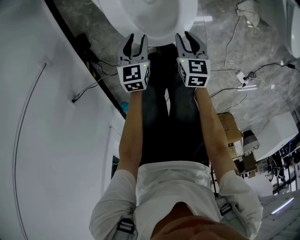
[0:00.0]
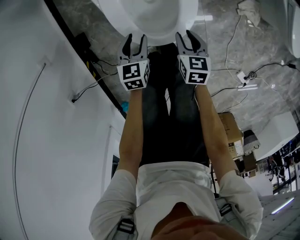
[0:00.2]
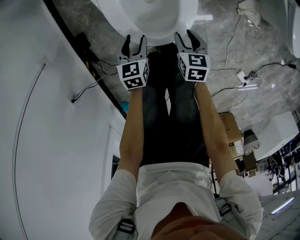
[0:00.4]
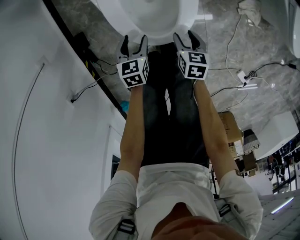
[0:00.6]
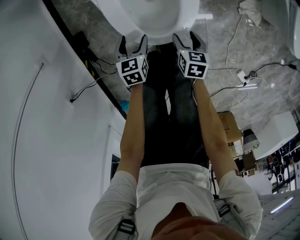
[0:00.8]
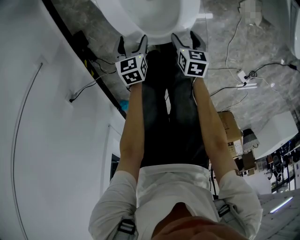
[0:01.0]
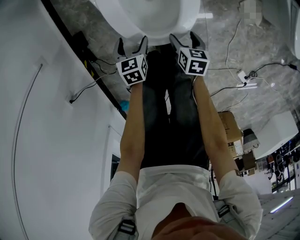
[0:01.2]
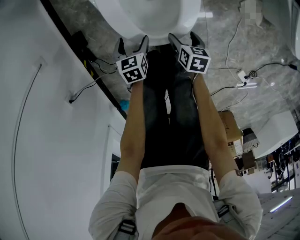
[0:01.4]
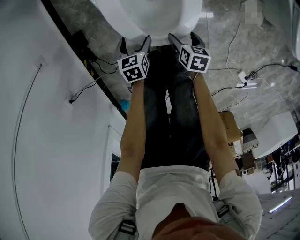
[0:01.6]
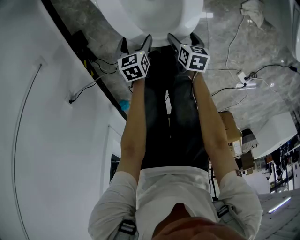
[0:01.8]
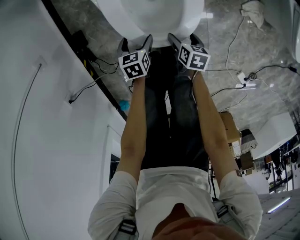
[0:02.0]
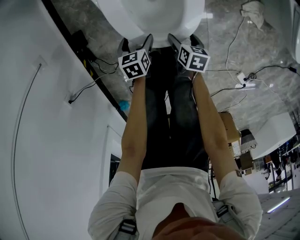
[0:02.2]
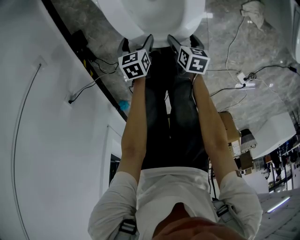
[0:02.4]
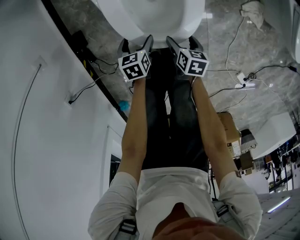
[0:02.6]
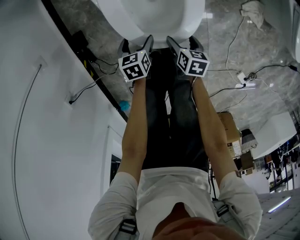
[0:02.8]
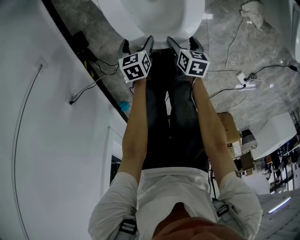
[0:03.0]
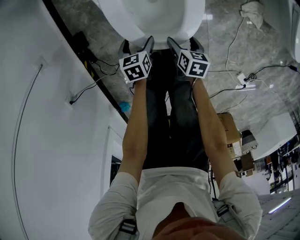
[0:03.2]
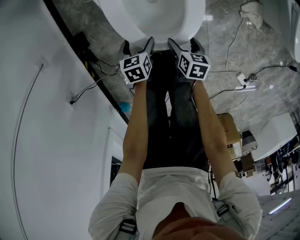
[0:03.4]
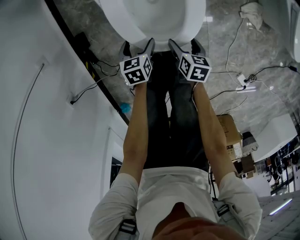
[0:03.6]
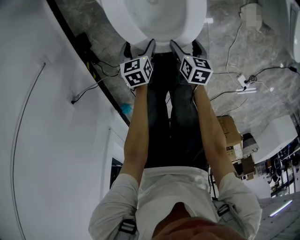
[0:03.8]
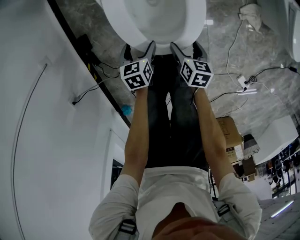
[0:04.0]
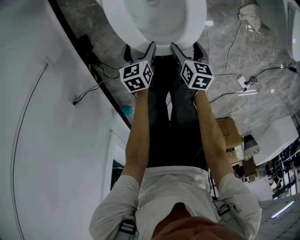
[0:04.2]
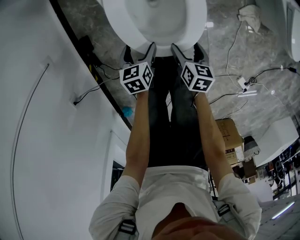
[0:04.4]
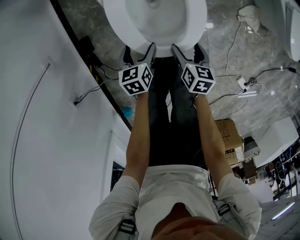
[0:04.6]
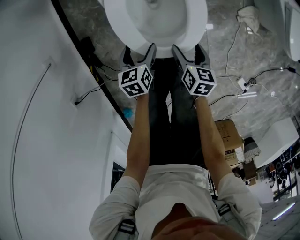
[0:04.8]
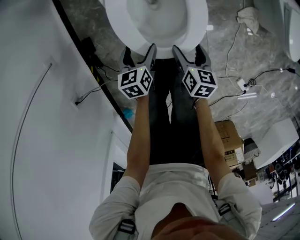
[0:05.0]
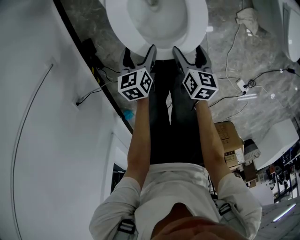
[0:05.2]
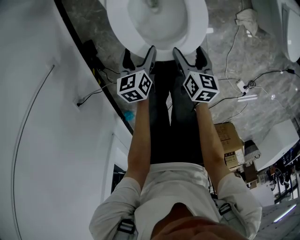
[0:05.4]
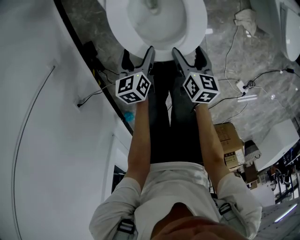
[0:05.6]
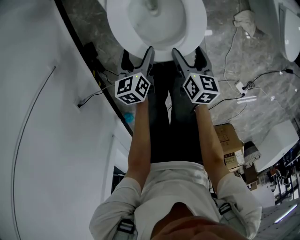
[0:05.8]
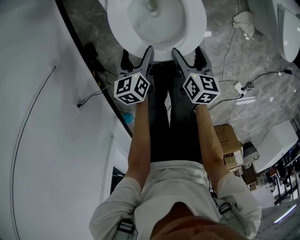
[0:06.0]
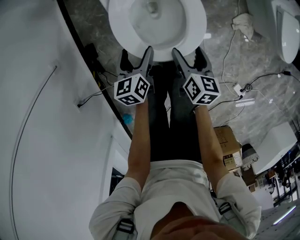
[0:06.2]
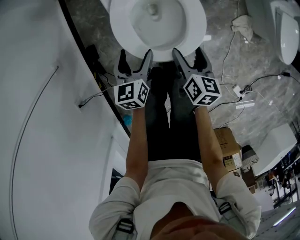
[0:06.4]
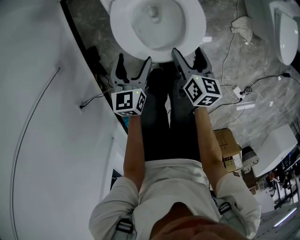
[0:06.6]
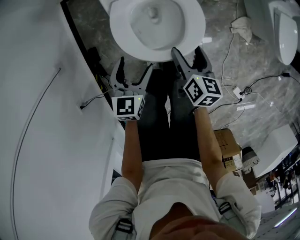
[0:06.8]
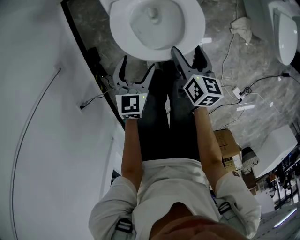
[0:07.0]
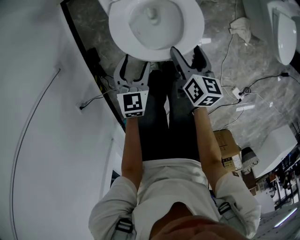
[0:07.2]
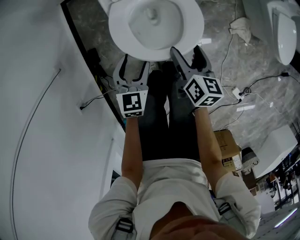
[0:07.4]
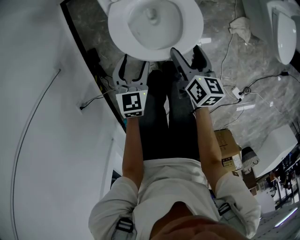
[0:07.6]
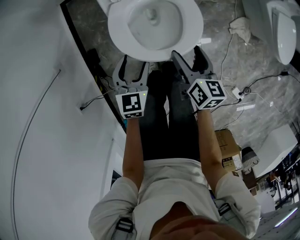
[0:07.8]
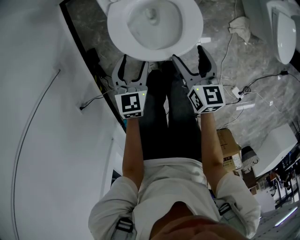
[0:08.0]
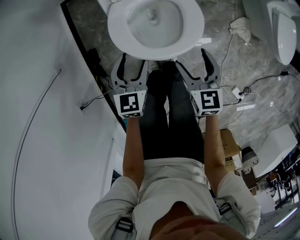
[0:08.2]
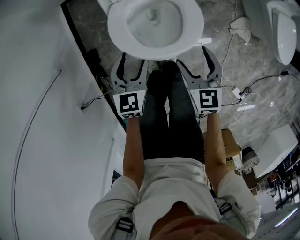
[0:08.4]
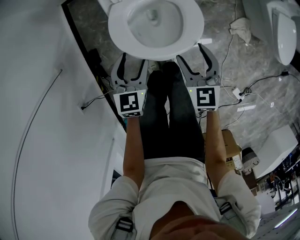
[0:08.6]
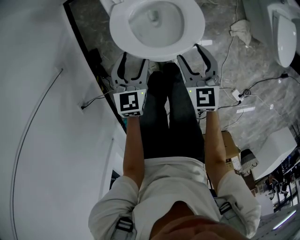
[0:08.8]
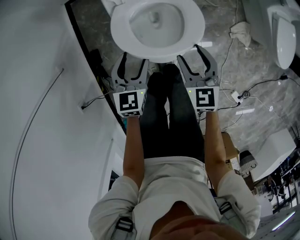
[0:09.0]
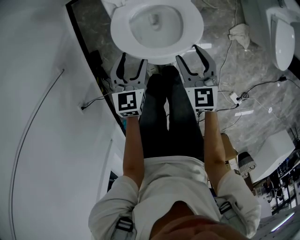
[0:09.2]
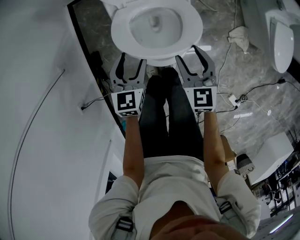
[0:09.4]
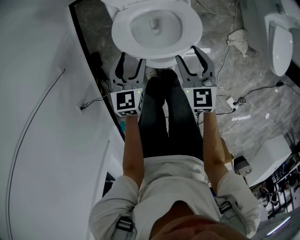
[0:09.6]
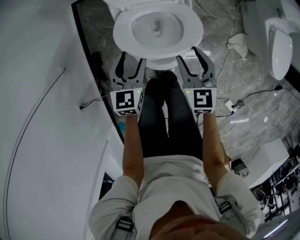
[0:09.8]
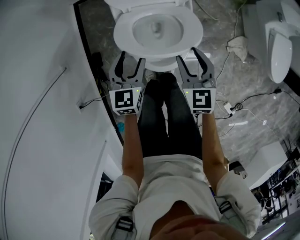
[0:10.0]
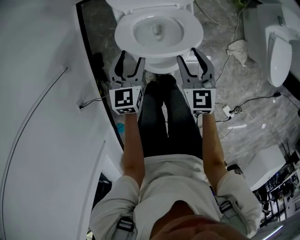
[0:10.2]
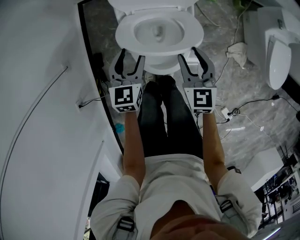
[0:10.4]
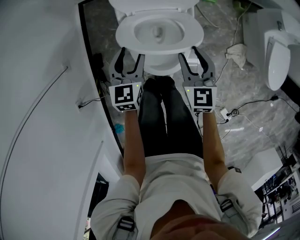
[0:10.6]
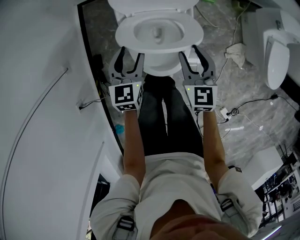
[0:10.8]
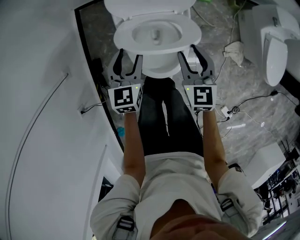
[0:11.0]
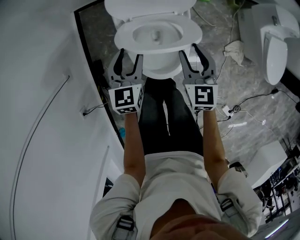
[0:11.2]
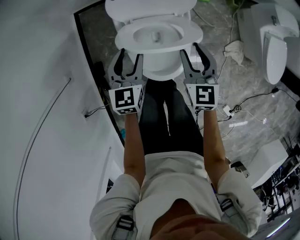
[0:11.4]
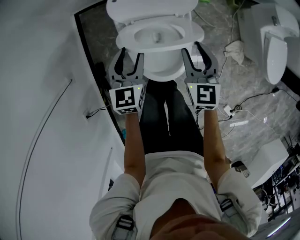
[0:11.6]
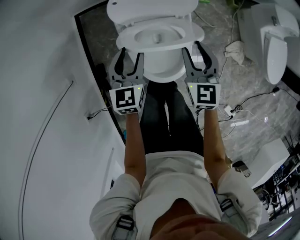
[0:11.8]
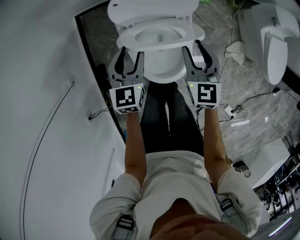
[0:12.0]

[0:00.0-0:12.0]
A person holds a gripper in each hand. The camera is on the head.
0:00.0 to 0:01.6: Both grippers travel together downward, roughly 10 cm. The left gripper opens up; the right gripper changes its angle by about 20 degrees, and opens its fingers.
0:01.6 to 0:03.0: There are only small adjustments of the grippers.
0:03.0 to 0:04.4: Both grippers travel together upward, approximately 10 cm.
0:04.4 to 0:06.0: The two grippers go roughly 10 cm upward.
0:06.0 to 0:07.6: The grippers both shift upward by approximately 10 cm. The left gripper rotates some 40 degrees.
0:07.6 to 0:09.0: The right gripper rotates around the line of its fingers by approximately 40 degrees, counterclockwise from behind.
0:09.0 to 0:10.4: Both grippers travel together forward and upward, approximately 10 cm.
0:10.4 to 0:12.0: Both grippers move forward, roughly 10 cm.

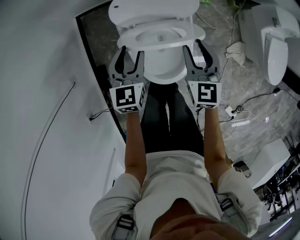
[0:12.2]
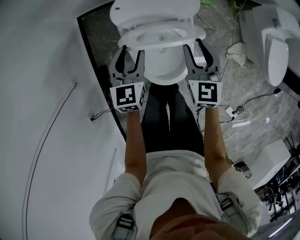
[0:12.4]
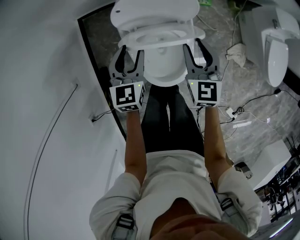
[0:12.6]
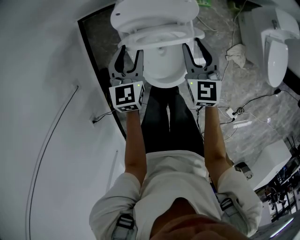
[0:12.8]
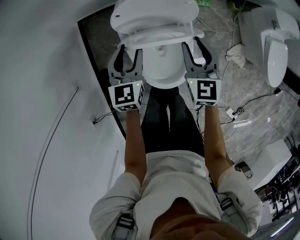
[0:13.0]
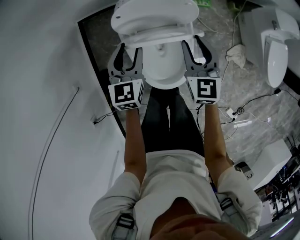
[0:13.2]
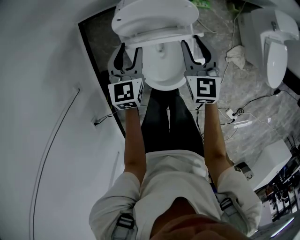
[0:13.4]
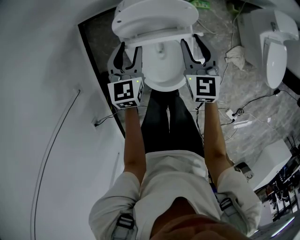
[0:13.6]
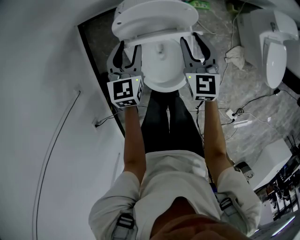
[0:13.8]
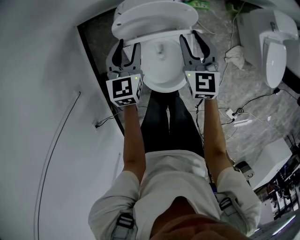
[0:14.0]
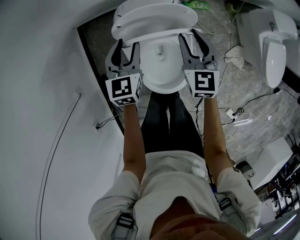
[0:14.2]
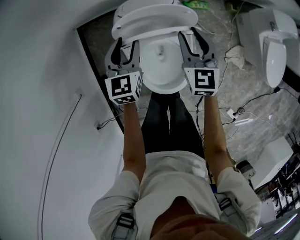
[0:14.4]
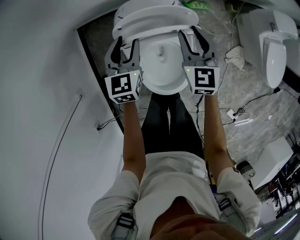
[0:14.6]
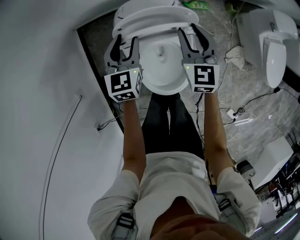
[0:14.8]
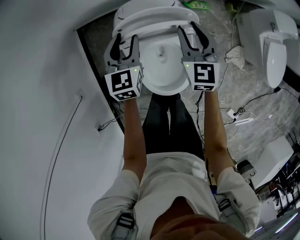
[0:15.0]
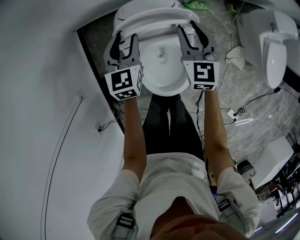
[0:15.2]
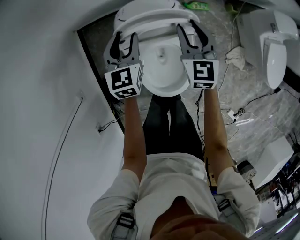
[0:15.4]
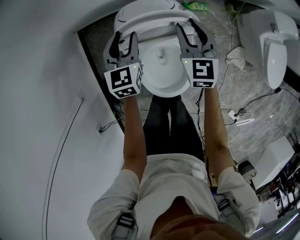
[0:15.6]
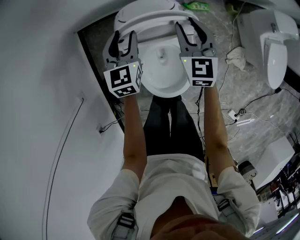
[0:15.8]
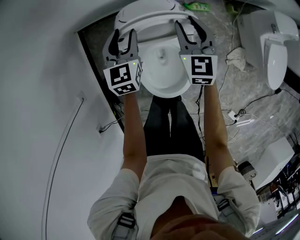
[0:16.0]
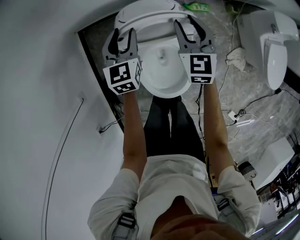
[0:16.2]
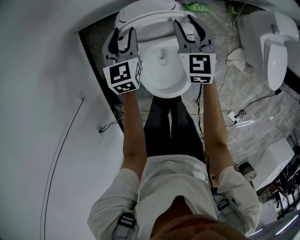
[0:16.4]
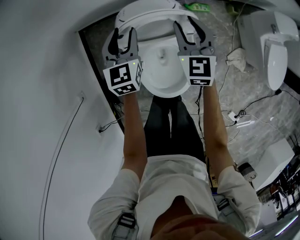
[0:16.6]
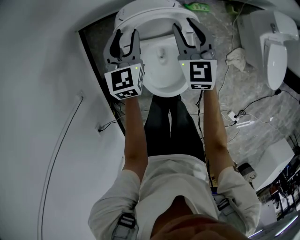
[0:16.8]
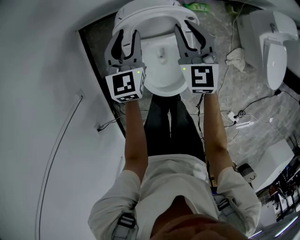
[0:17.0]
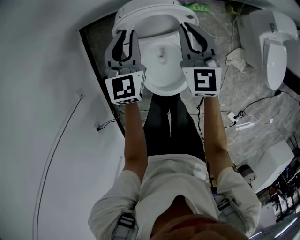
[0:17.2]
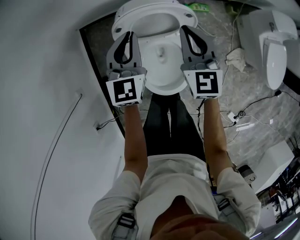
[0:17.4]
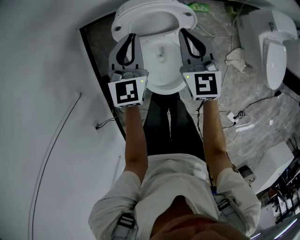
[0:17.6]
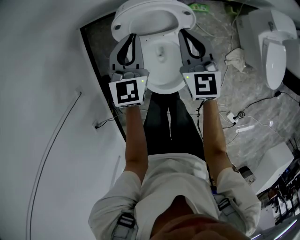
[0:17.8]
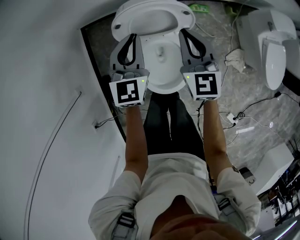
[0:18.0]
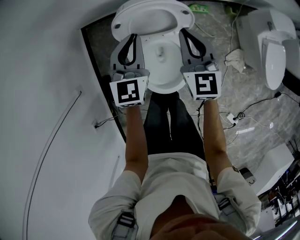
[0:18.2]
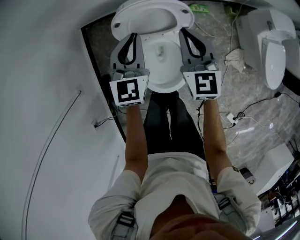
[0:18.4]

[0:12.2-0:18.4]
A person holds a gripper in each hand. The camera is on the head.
0:12.2 to 0:13.8: The grippers both shift forward by approximately 10 cm.
0:13.8 to 0:15.4: Both grippers move forward, approximately 5 cm.
0:15.4 to 0:16.8: The grippers stay close to where they were, moving slightly.
0:16.8 to 0:18.4: Both grippers travel together backward and upward, some 10 cm. The right gripper closes, while the left gripper closes its fingers.

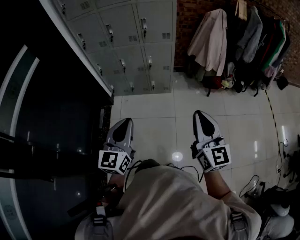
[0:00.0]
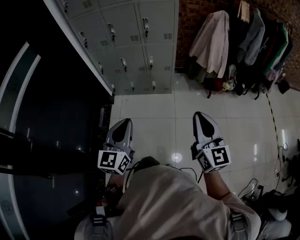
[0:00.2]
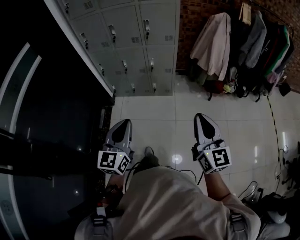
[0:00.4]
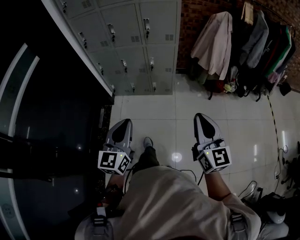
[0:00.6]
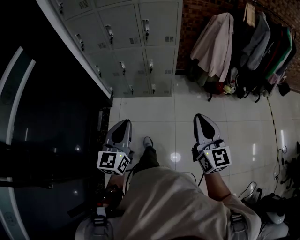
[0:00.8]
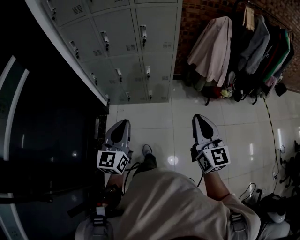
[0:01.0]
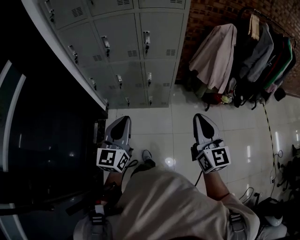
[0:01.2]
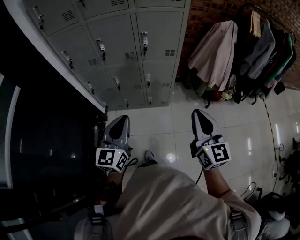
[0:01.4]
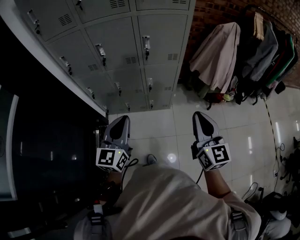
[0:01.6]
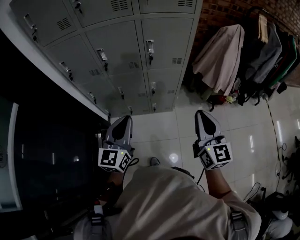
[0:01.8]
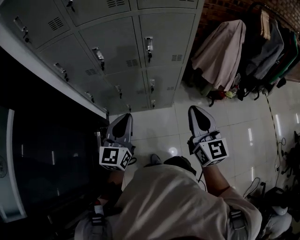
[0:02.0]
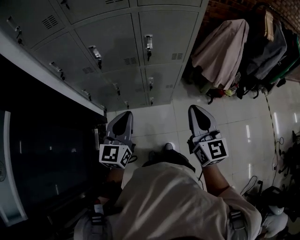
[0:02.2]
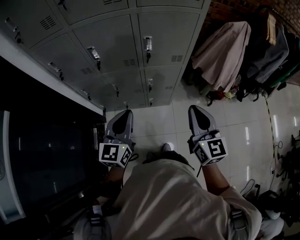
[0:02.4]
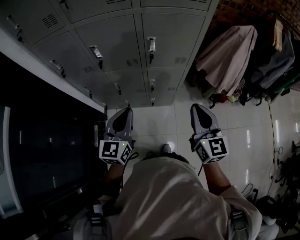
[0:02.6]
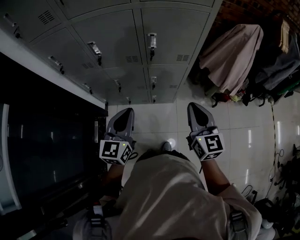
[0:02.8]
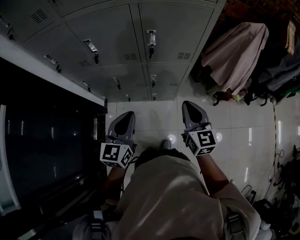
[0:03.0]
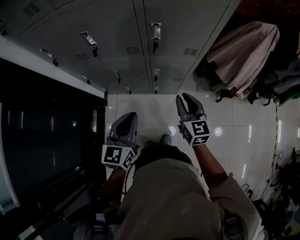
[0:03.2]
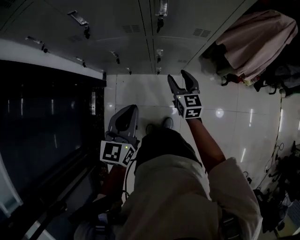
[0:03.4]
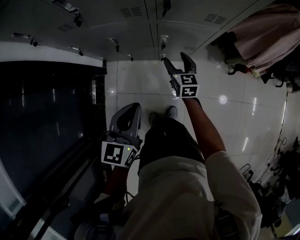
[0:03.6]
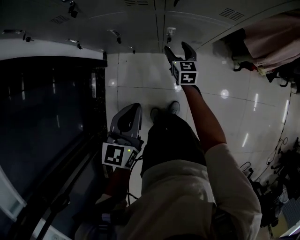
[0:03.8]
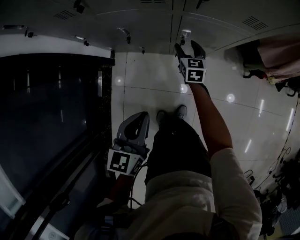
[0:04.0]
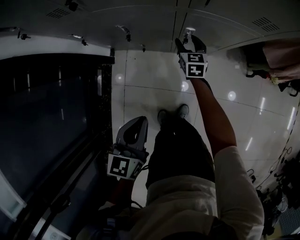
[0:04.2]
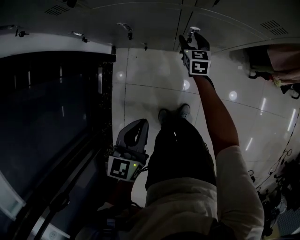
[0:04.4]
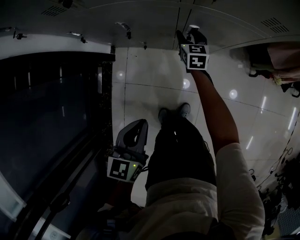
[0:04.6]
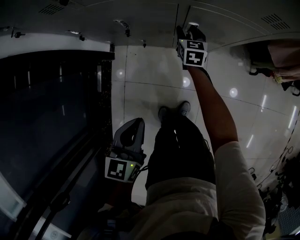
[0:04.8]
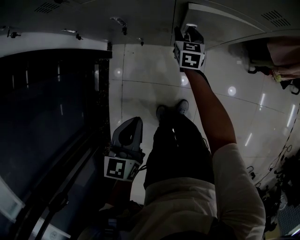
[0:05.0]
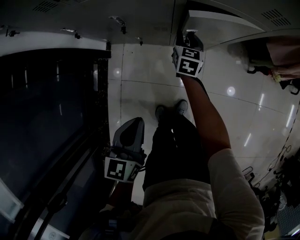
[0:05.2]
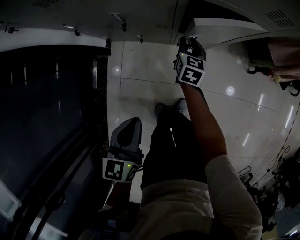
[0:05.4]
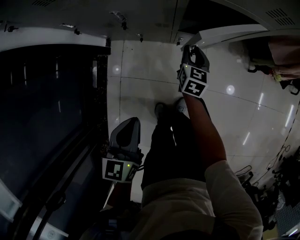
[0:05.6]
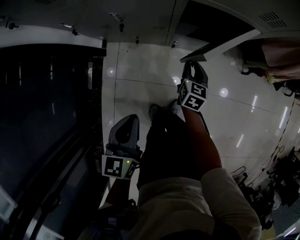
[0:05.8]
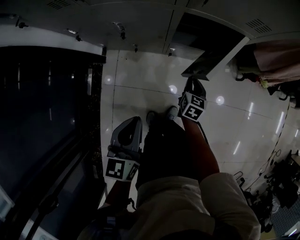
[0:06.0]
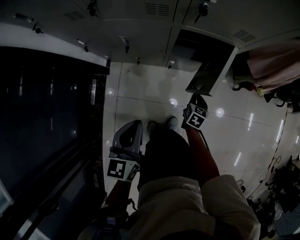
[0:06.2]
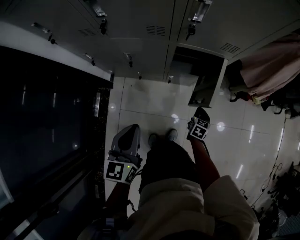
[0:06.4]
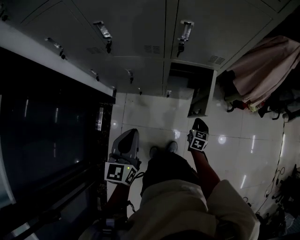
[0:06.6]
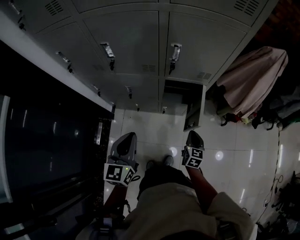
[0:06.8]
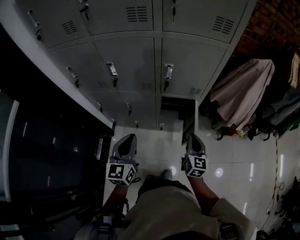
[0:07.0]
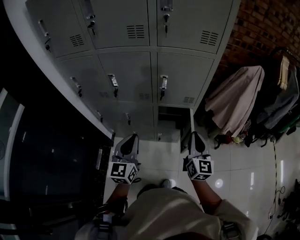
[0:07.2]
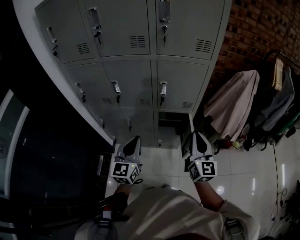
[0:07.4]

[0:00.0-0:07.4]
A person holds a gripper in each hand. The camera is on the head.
0:00.0 to 0:01.4: The two grippers go some 30 cm forward.
0:01.4 to 0:03.0: Both grippers travel together forward and downward, roughly 30 cm.
0:03.0 to 0:04.4: The right gripper moves downward and forward, about 60 cm, swivels some 20 degrees, and opens its fingers; the left gripper travels downward by roughly 40 cm, and turns by about 20 degrees.
0:04.4 to 0:06.0: The right gripper goes approximately 20 cm backward and to the right, swivels approximately 20 degrees, and closes.
0:06.0 to 0:07.4: The left gripper moves up and down over about 35 cm, changing direction 2 times, and tilts its fingers roughly 40 degrees upward; the right gripper moves up and down over some 20 cm, changing direction 2 times, and points its fingers some 60 degrees further upward.
